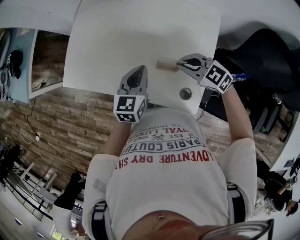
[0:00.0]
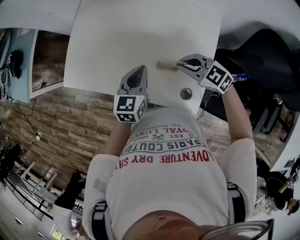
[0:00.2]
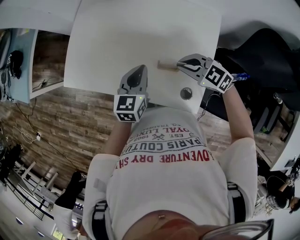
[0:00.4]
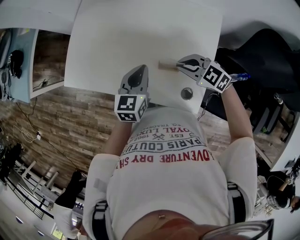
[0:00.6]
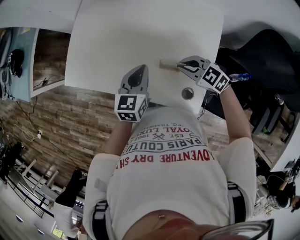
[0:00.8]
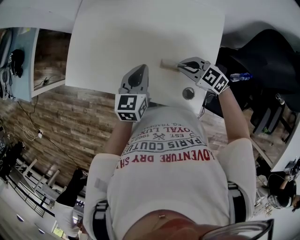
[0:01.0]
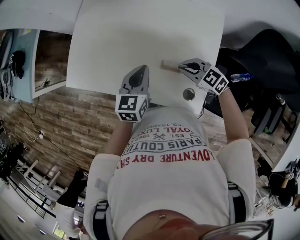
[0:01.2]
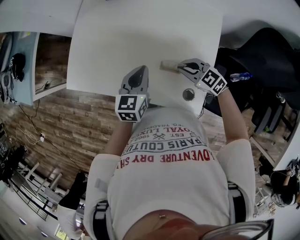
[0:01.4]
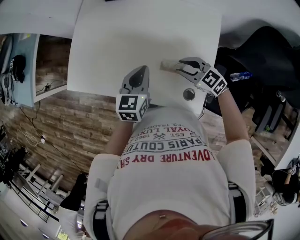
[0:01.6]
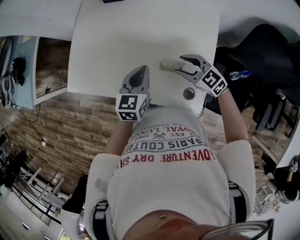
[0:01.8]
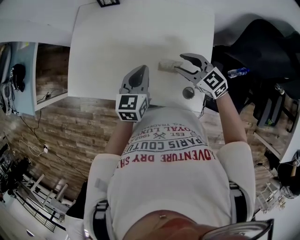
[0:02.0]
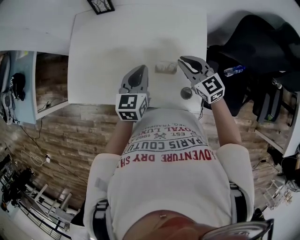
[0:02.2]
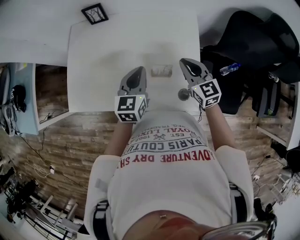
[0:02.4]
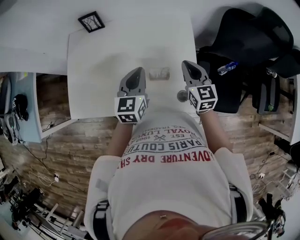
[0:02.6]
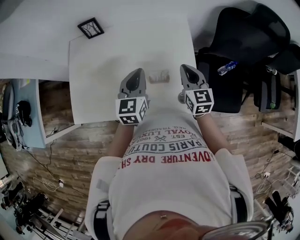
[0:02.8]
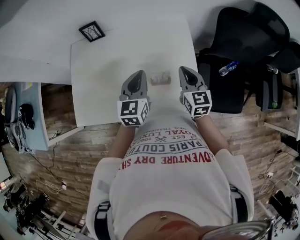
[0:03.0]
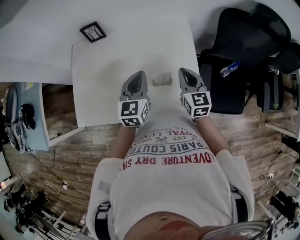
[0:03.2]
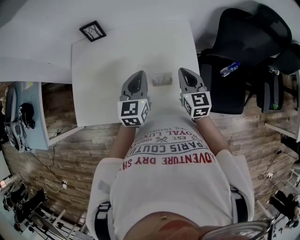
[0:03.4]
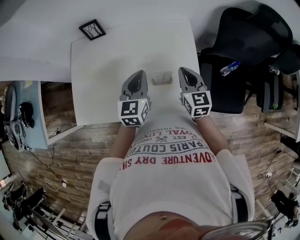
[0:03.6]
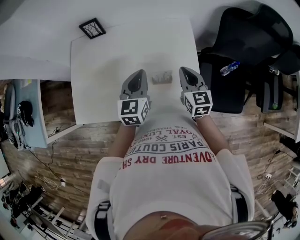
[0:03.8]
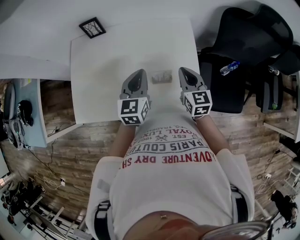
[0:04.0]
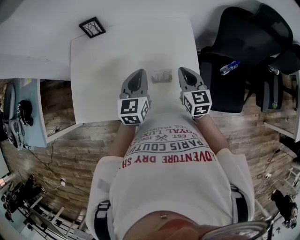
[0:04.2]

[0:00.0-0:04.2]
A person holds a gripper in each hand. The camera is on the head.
0:00.0 to 0:01.4: The right gripper is displaced downward by roughly 5 cm.
0:01.4 to 0:02.8: The right gripper shifts some 10 cm upward, turns by about 70 degrees, and opens, then closes once more, while the left gripper moves upward, approximately 10 cm.
0:02.8 to 0:04.2: The grippers make only small movements.

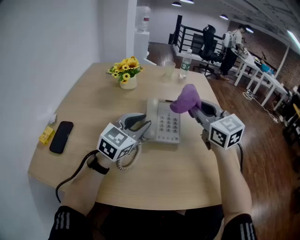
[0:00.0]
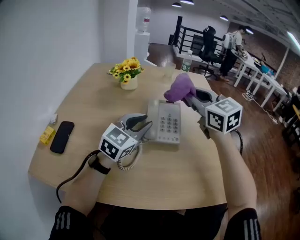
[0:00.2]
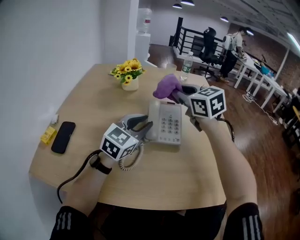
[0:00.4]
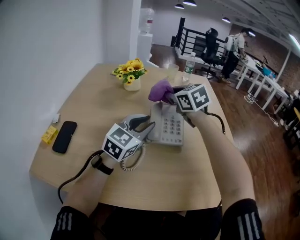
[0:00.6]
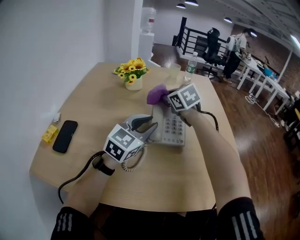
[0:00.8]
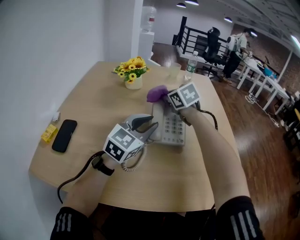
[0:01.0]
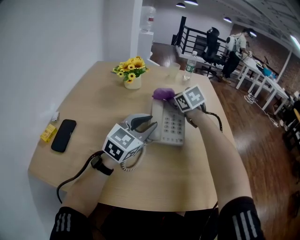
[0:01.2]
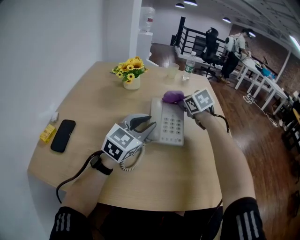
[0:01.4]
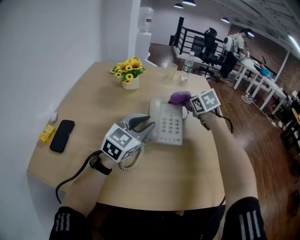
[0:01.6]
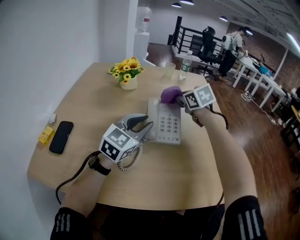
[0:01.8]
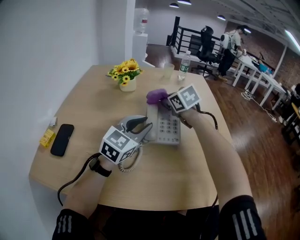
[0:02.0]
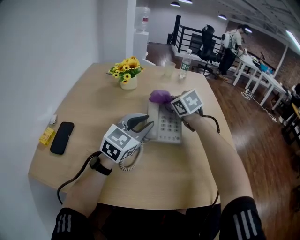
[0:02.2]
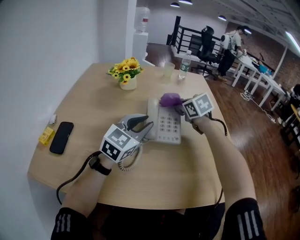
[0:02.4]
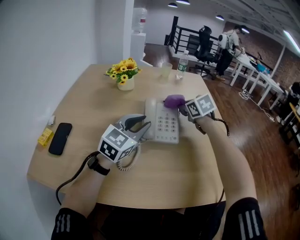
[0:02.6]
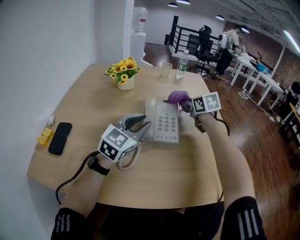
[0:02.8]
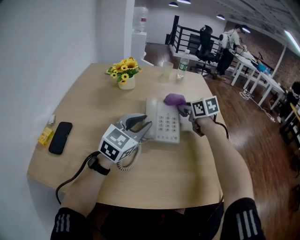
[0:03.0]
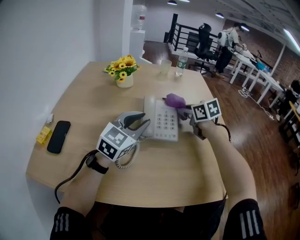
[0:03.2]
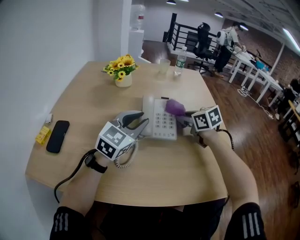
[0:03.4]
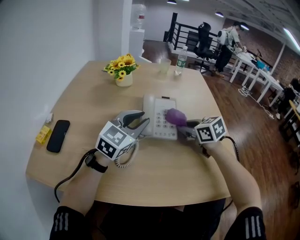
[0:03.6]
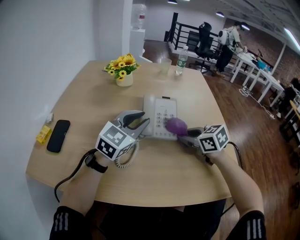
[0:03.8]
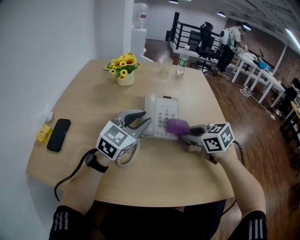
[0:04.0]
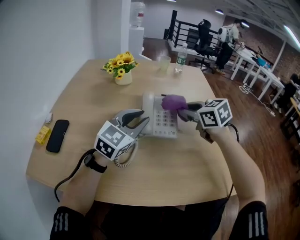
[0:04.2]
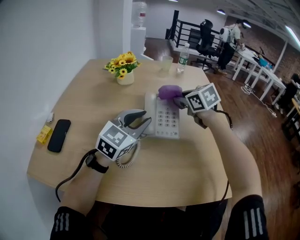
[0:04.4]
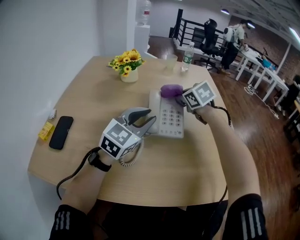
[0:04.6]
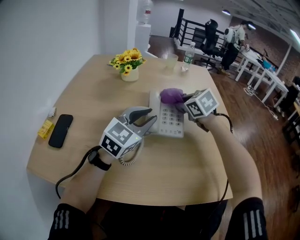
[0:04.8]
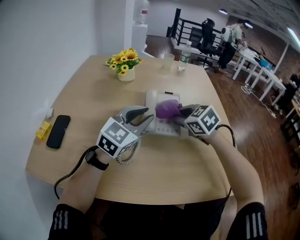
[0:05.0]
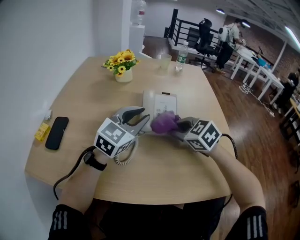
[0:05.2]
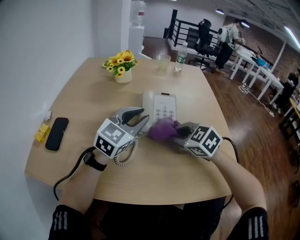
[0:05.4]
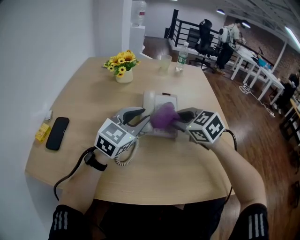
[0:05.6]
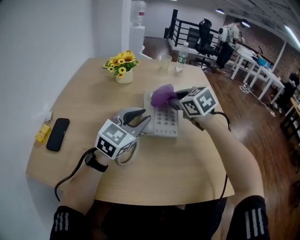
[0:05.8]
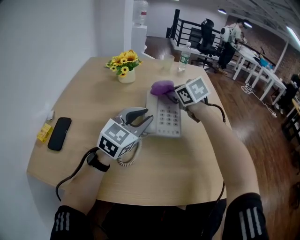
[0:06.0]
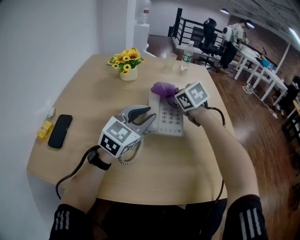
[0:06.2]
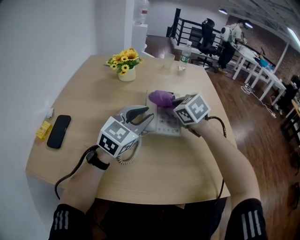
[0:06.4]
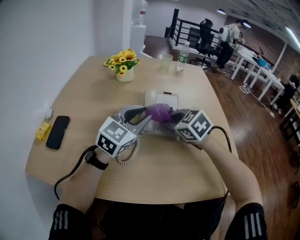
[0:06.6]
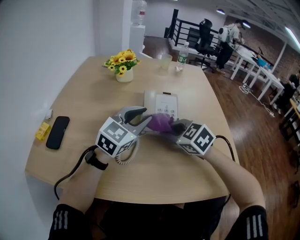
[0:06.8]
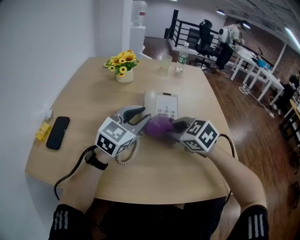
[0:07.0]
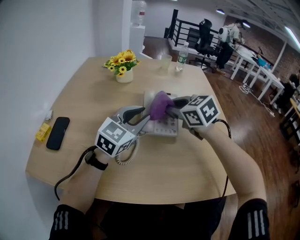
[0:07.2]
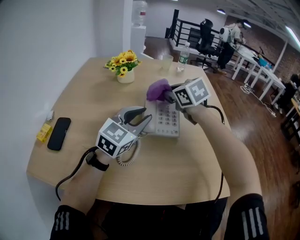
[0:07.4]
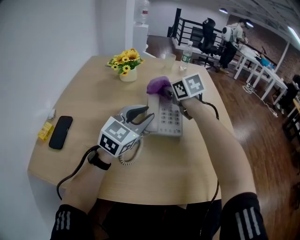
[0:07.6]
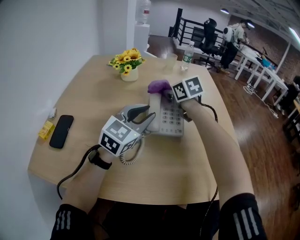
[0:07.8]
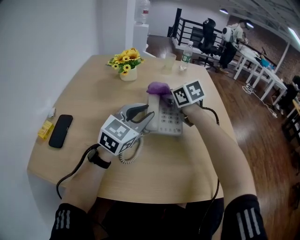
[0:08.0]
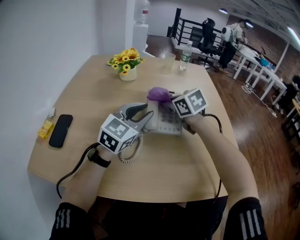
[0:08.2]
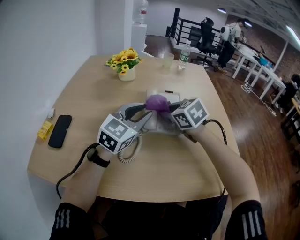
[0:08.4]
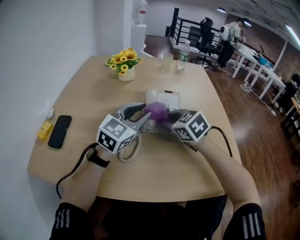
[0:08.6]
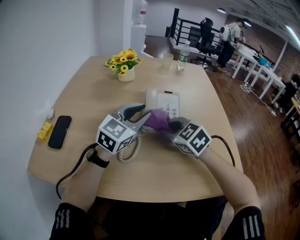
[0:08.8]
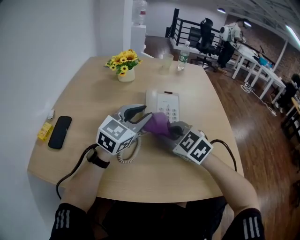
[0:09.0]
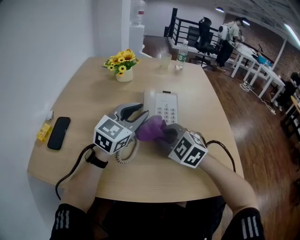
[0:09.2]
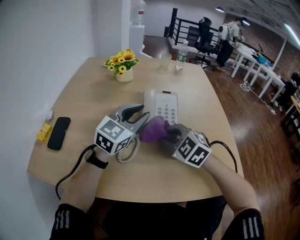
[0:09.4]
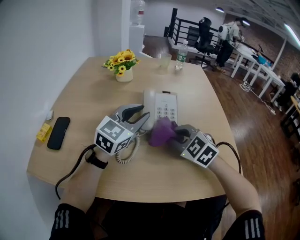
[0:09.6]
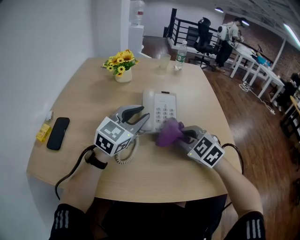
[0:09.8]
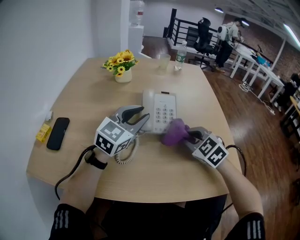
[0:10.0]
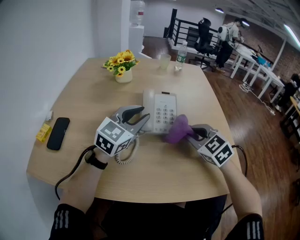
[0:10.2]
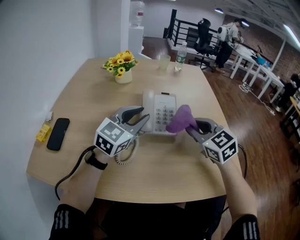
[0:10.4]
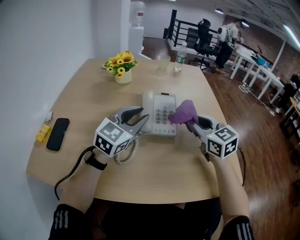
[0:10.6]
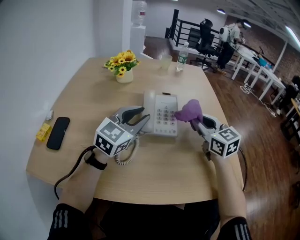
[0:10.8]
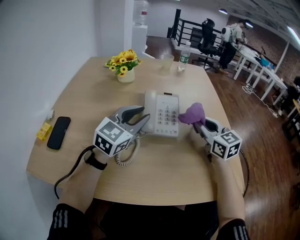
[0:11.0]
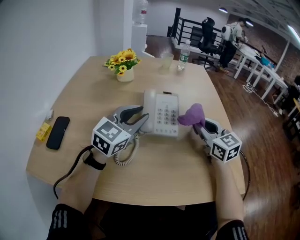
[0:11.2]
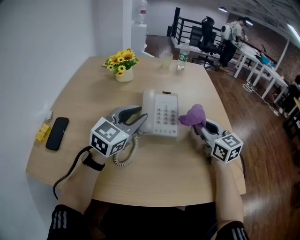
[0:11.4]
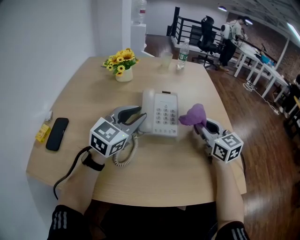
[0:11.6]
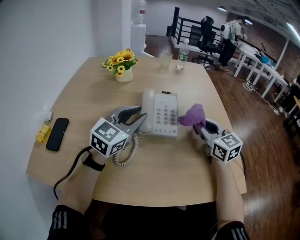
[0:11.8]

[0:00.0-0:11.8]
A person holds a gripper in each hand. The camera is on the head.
0:00.0 to 0:01.4: The right gripper goes some 20 cm forward and downward, and tilts its fingers roughly 40 degrees downward.
0:01.4 to 0:03.0: The right gripper moves left and right over some 10 cm, changing direction 2 times, and changes its angle by some 20 degrees.
0:03.0 to 0:04.4: The right gripper travels backward and back again, roughly 15 cm each way.
0:04.4 to 0:06.0: The right gripper goes backward and returns, about 15 cm each way.
0:06.0 to 0:07.4: The right gripper goes backward and returns, roughly 15 cm each way.
0:07.4 to 0:08.8: The right gripper goes roughly 15 cm backward and downward.
0:08.8 to 0:10.4: The right gripper travels to the right and upward by some 10 cm.
0:10.4 to 0:11.8: The right gripper changes place by about 5 cm, and swivels about 20 degrees.

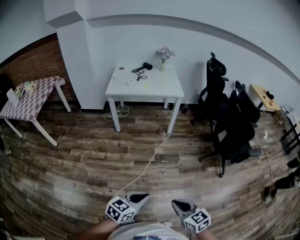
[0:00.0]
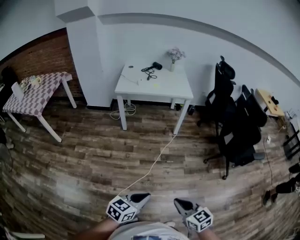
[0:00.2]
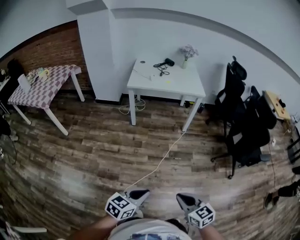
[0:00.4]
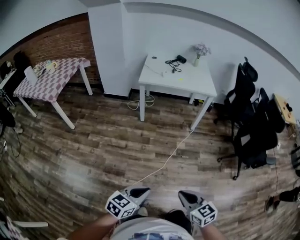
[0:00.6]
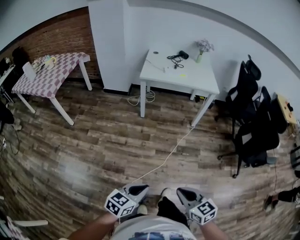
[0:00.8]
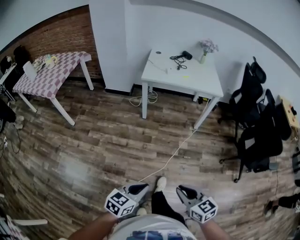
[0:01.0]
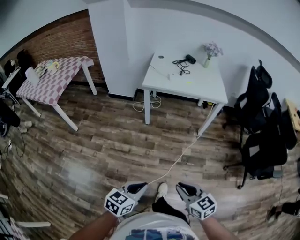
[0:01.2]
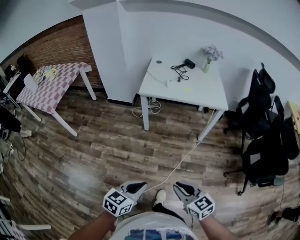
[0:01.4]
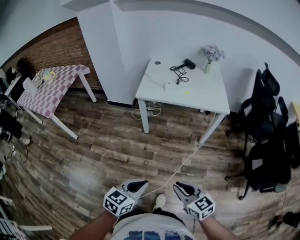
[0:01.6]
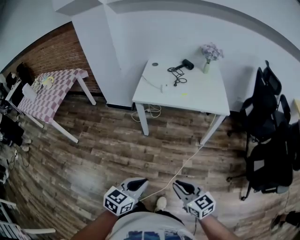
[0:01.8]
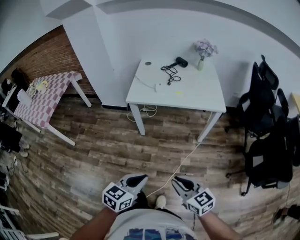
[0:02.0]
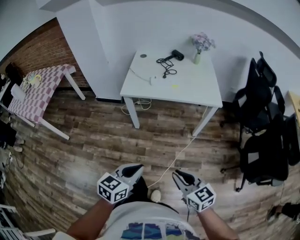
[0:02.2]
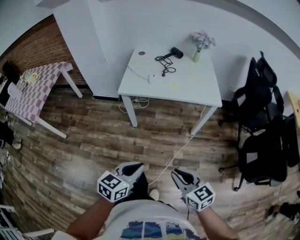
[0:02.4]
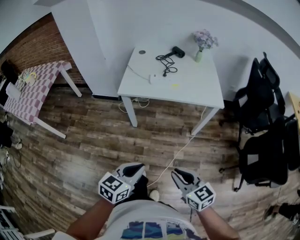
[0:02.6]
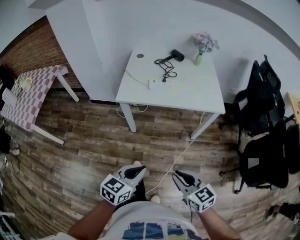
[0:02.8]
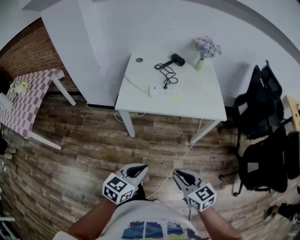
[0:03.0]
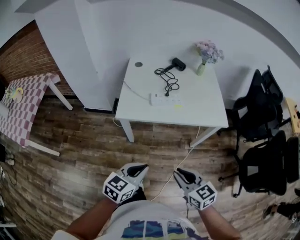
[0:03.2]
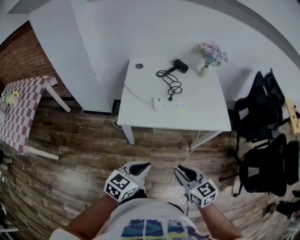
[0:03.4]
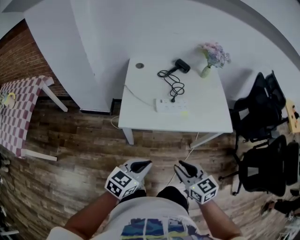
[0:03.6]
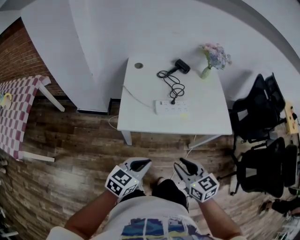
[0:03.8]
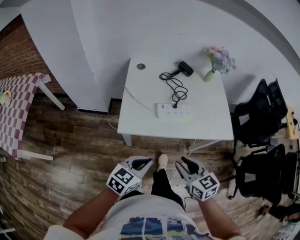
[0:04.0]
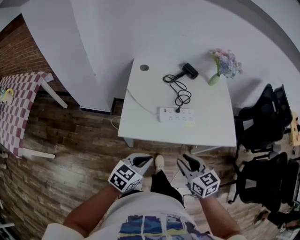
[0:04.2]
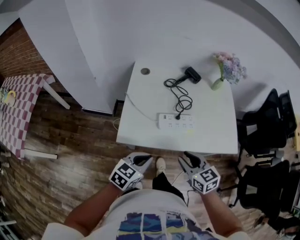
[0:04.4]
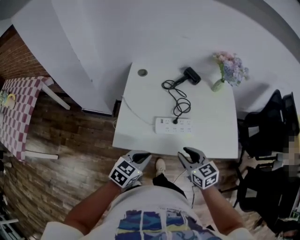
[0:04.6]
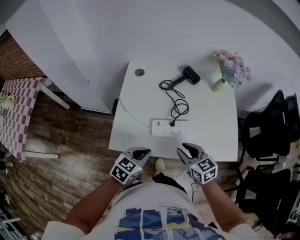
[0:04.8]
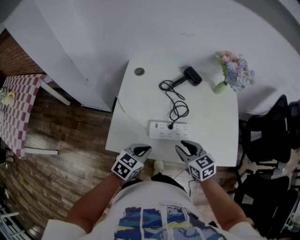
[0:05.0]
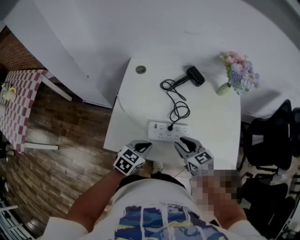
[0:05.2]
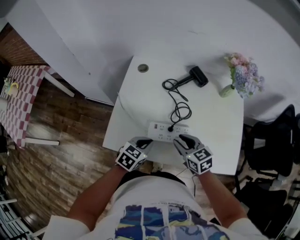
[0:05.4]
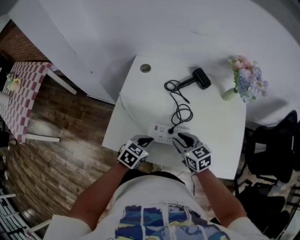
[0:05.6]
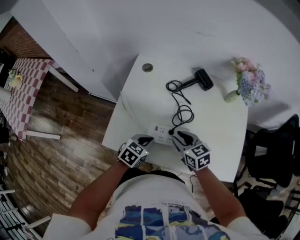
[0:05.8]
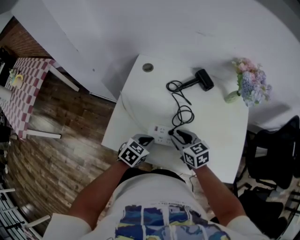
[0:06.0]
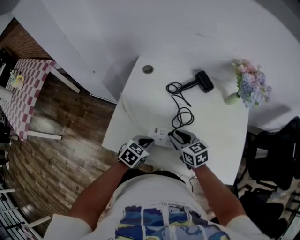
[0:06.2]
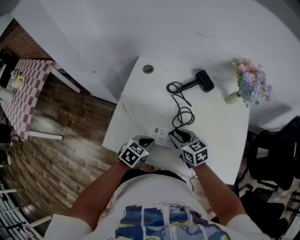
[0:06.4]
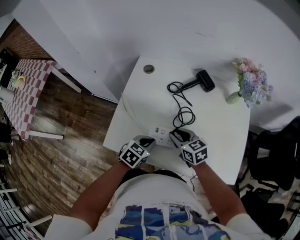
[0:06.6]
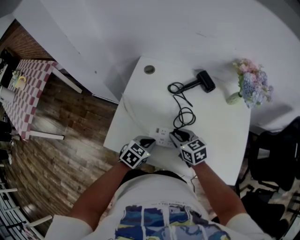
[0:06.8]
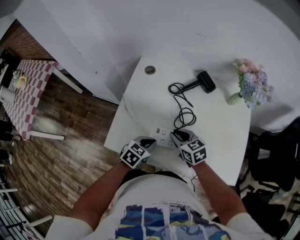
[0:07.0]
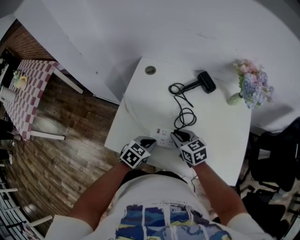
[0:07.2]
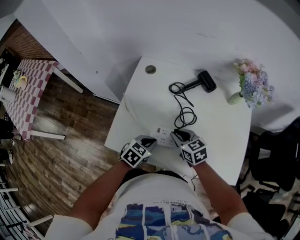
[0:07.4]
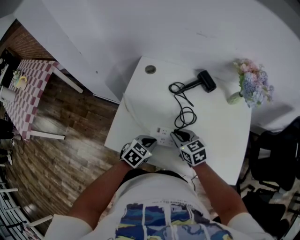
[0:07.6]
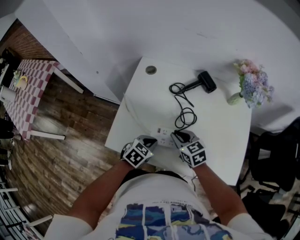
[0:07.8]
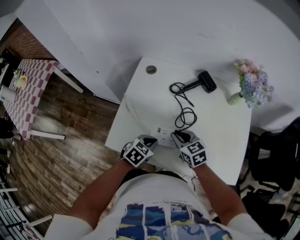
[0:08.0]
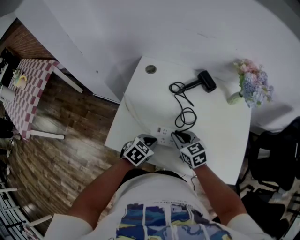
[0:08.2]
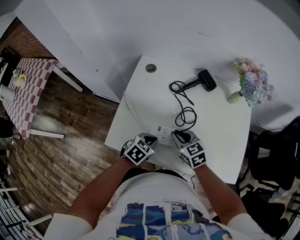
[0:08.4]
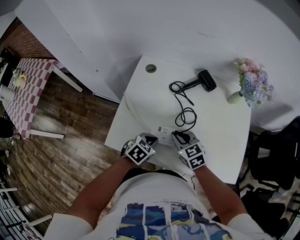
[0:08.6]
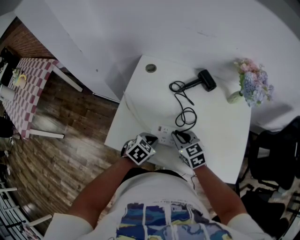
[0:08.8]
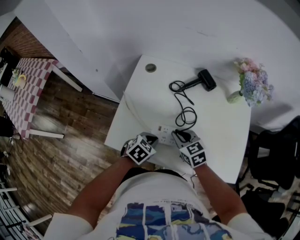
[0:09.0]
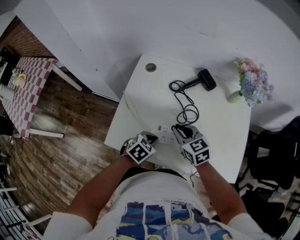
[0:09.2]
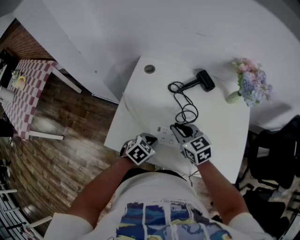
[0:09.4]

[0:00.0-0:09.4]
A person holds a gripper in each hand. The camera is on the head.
0:00.0 to 0:01.6: The two grippers go some 40 cm forward and to the left.
0:01.6 to 0:03.2: The two grippers go some 35 cm forward.
0:03.2 to 0:04.8: The two grippers go roughly 35 cm forward.
0:04.8 to 0:06.2: Both grippers move forward and downward, about 15 cm.
0:06.2 to 0:07.8: The grippers make only small movements.
0:07.8 to 0:09.4: The right gripper heads upward, covering some 5 cm.
